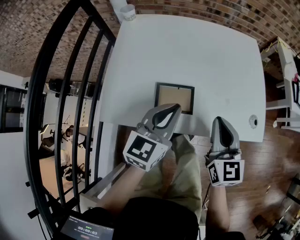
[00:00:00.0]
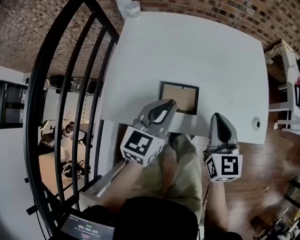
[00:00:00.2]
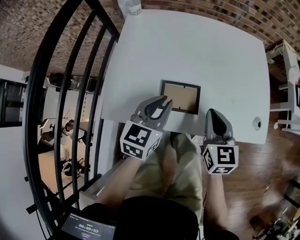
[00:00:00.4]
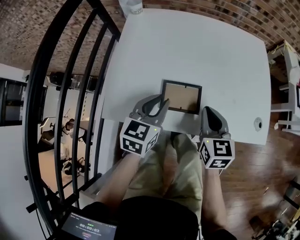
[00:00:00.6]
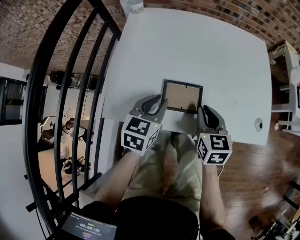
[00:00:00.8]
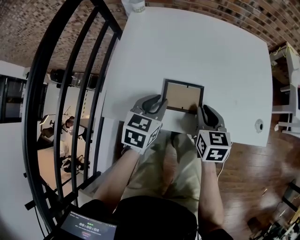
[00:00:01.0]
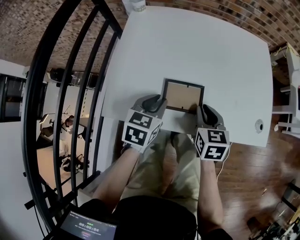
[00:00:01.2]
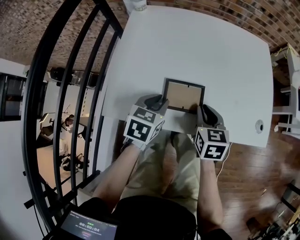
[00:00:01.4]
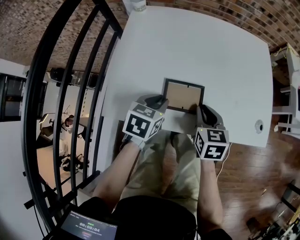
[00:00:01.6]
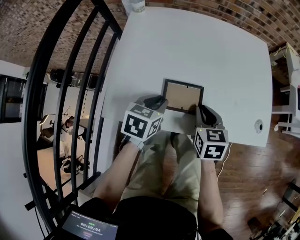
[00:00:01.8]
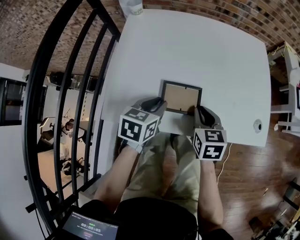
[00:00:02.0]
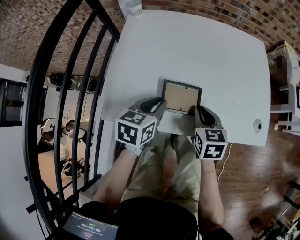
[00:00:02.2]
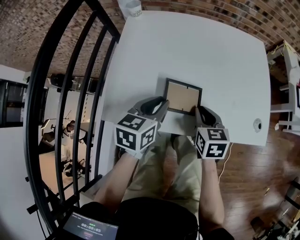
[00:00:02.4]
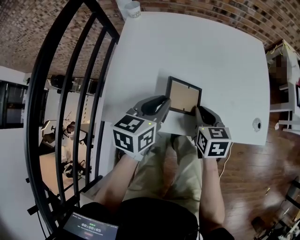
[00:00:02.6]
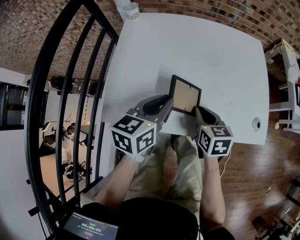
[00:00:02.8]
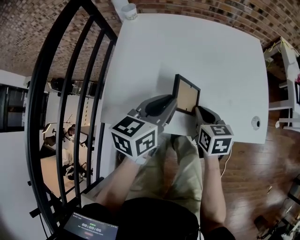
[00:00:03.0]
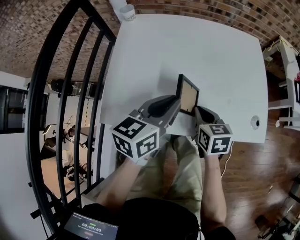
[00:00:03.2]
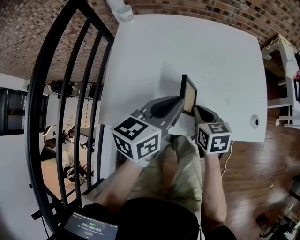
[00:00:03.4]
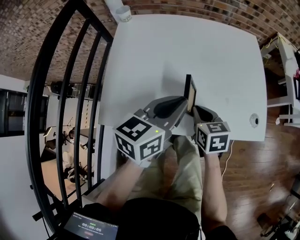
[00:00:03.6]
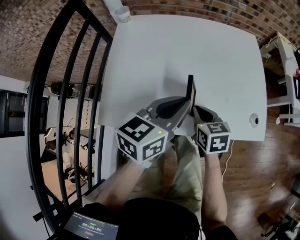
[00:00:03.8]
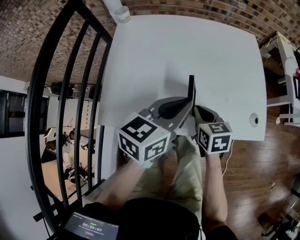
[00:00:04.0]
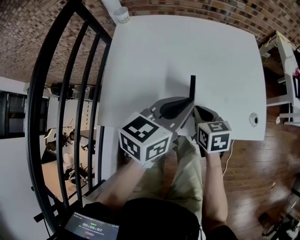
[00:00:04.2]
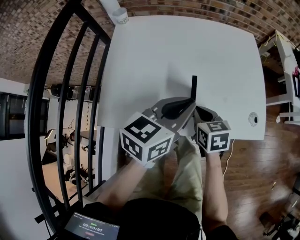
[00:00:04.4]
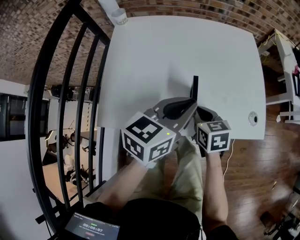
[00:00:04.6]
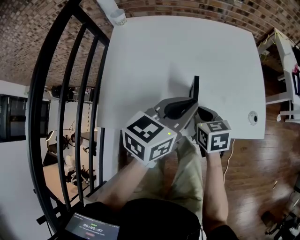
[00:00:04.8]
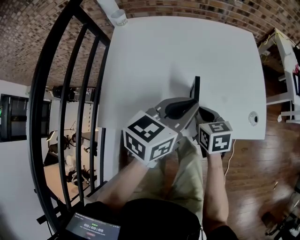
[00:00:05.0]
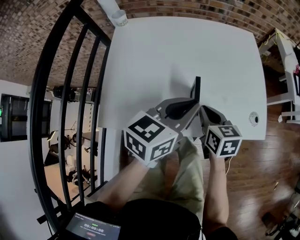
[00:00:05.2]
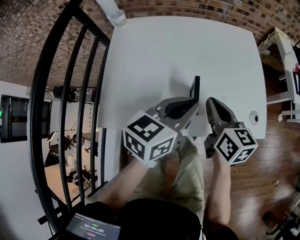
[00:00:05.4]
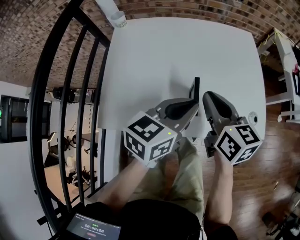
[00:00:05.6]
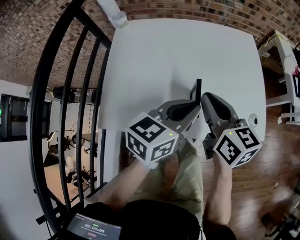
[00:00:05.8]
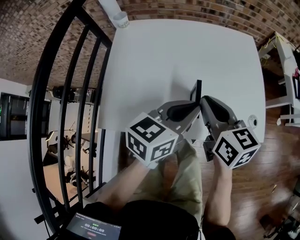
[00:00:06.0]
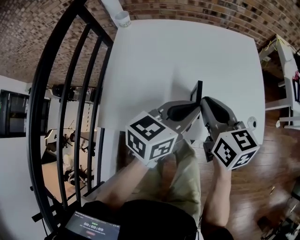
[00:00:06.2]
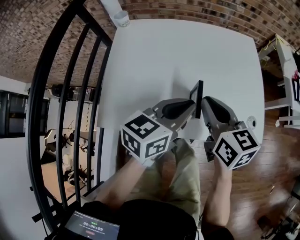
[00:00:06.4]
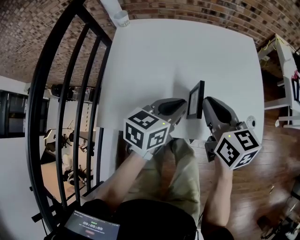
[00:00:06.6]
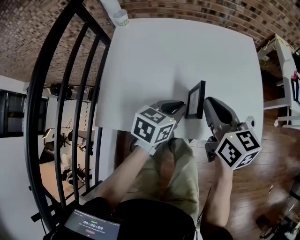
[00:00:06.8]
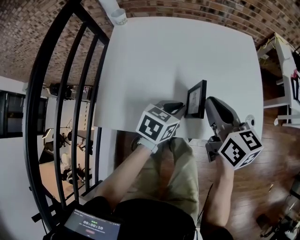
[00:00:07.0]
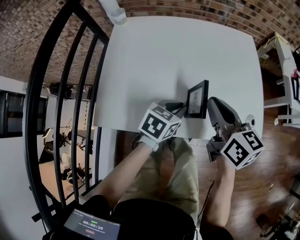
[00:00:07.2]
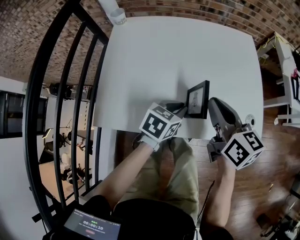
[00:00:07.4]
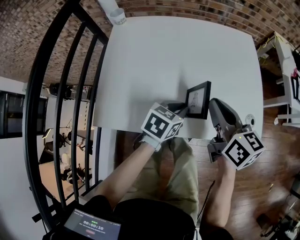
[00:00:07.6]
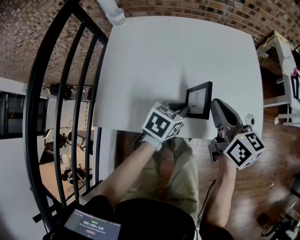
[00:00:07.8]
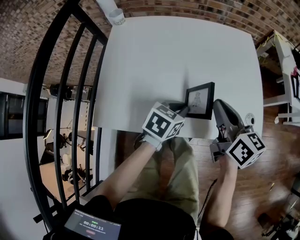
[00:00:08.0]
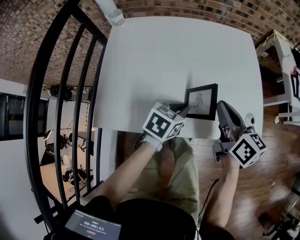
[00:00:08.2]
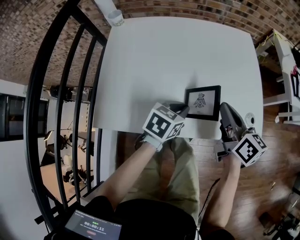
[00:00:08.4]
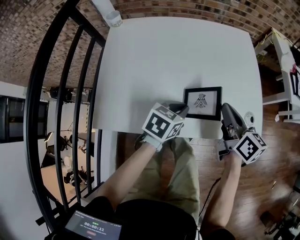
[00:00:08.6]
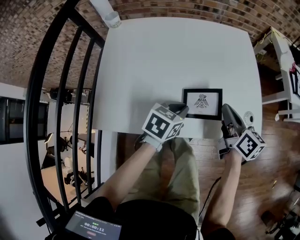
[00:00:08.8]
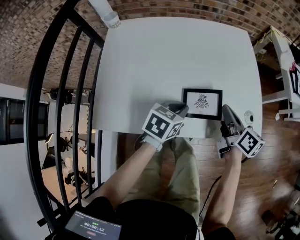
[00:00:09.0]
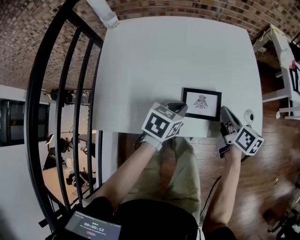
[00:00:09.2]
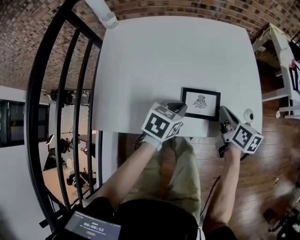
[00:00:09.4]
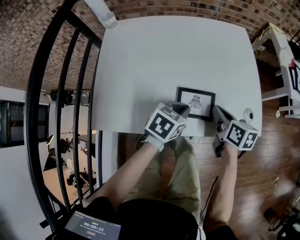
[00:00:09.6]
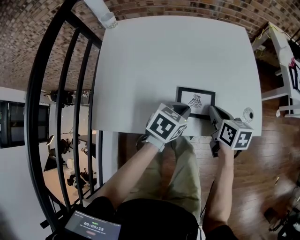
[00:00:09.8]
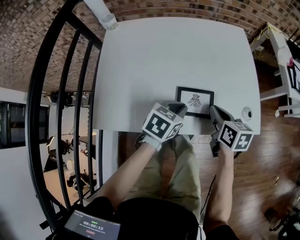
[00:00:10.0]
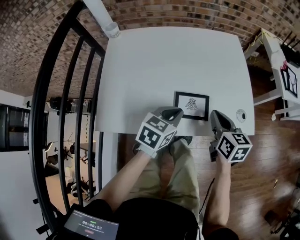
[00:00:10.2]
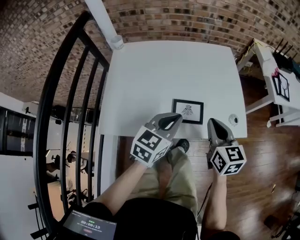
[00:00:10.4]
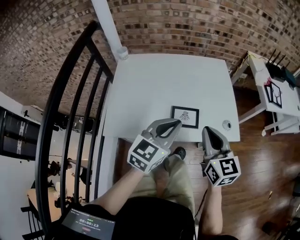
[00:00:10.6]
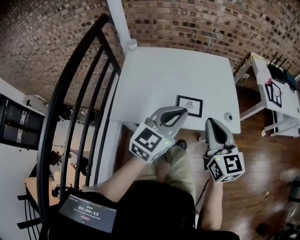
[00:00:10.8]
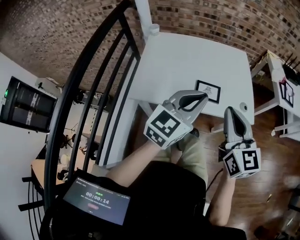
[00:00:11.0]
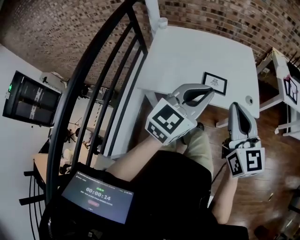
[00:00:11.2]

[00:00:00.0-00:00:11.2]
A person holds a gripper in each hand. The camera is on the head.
00:00:00.0 to 00:00:01.6: Both grippers travel together downward and to the left, roughly 15 cm. The left gripper points its fingers roughly 30 degrees further downward. The right gripper turns by approximately 30 degrees.
00:00:01.6 to 00:00:03.2: The left gripper is displaced upward and to the right by some 15 cm, and turns by approximately 30 degrees.
00:00:03.2 to 00:00:04.8: The left gripper heads to the right, covering some 10 cm.
00:00:04.8 to 00:00:06.4: The right gripper is displaced upward by some 15 cm, and changes its angle by approximately 20 degrees.
00:00:06.4 to 00:00:08.0: The right gripper heads to the right, covering about 5 cm. The left gripper moves downward, approximately 15 cm, and swivels roughly 30 degrees.
00:00:08.0 to 00:00:09.6: The right gripper heads downward and to the right, covering about 15 cm, and rotates approximately 20 degrees.
00:00:09.6 to 00:00:11.2: Both grippers travel together upward and backward, approximately 40 cm. The right gripper points its fingers about 30 degrees further upward. Meanwhile the left gripper angles its fingers upward, by some 40 degrees.

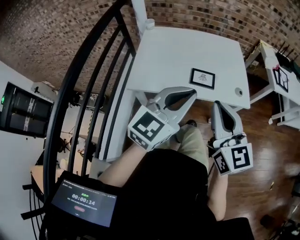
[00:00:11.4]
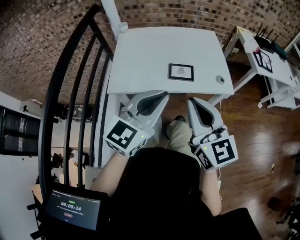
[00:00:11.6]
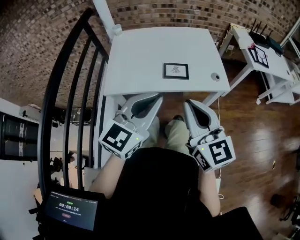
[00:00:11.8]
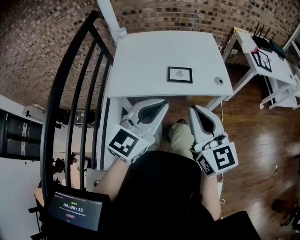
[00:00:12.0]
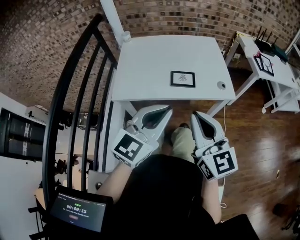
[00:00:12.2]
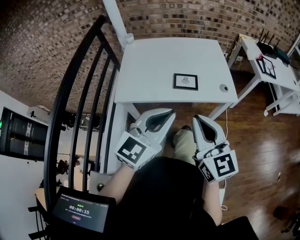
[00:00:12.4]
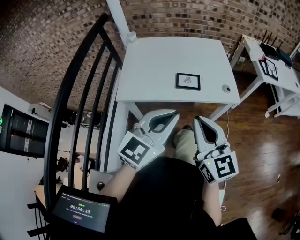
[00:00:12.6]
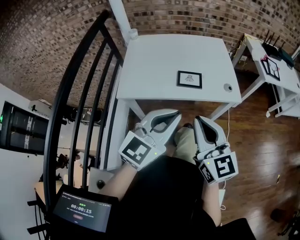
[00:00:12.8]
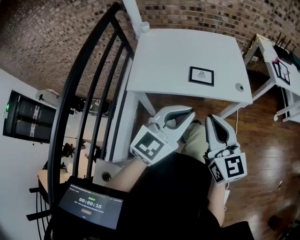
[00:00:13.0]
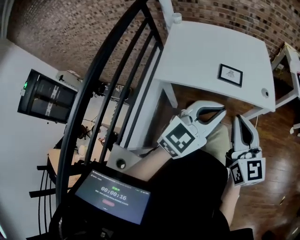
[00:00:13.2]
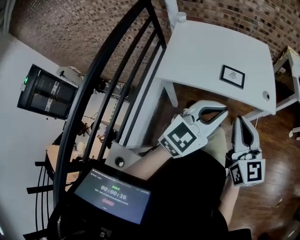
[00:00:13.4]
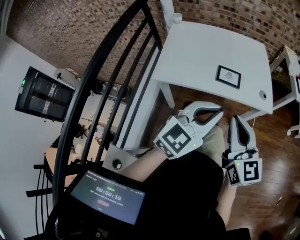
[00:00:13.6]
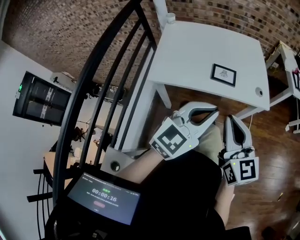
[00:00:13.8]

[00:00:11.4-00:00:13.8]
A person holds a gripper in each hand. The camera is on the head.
00:00:11.4 to 00:00:13.8: There are only small adjustments of the grippers.

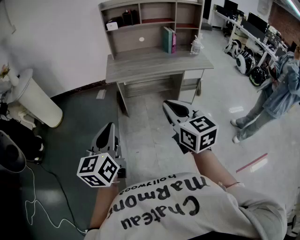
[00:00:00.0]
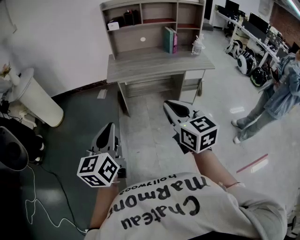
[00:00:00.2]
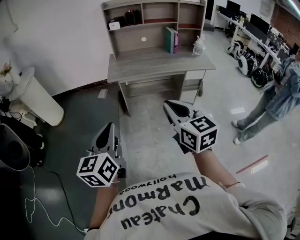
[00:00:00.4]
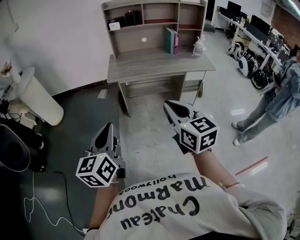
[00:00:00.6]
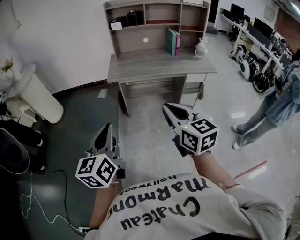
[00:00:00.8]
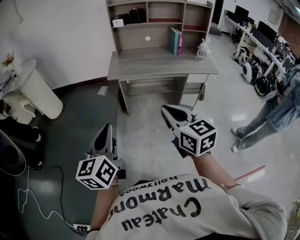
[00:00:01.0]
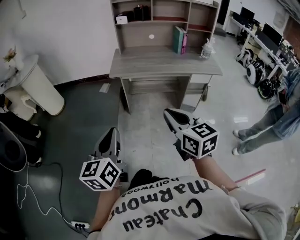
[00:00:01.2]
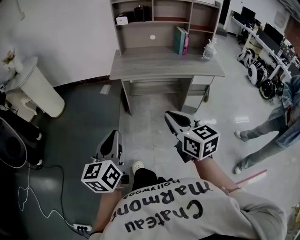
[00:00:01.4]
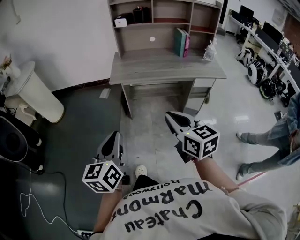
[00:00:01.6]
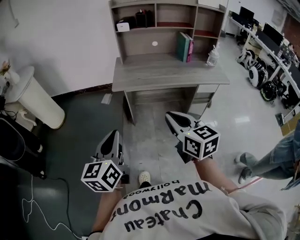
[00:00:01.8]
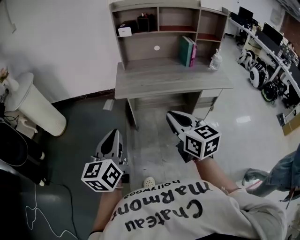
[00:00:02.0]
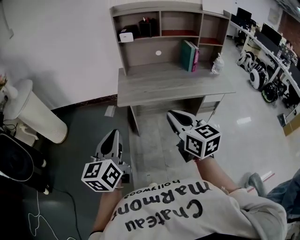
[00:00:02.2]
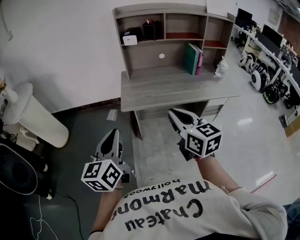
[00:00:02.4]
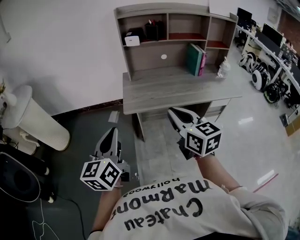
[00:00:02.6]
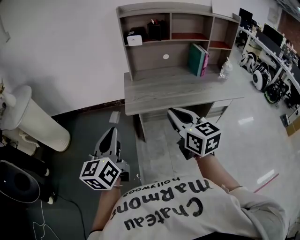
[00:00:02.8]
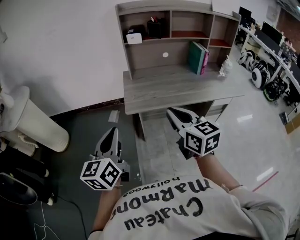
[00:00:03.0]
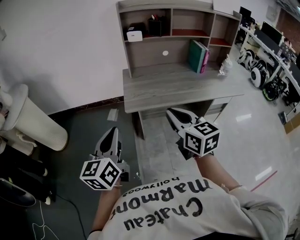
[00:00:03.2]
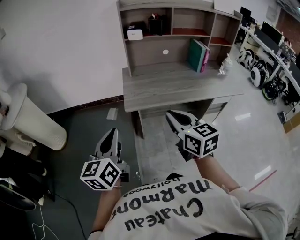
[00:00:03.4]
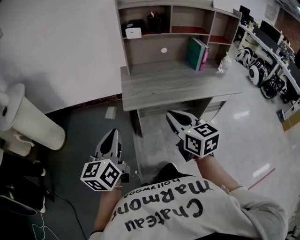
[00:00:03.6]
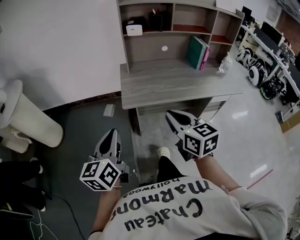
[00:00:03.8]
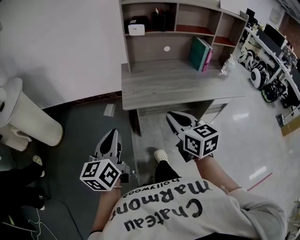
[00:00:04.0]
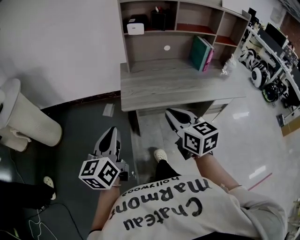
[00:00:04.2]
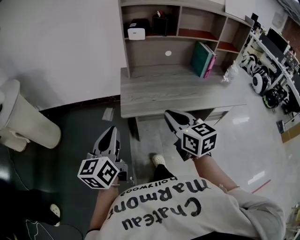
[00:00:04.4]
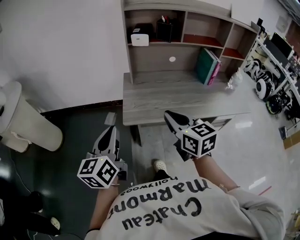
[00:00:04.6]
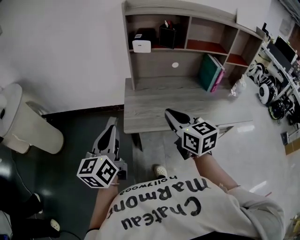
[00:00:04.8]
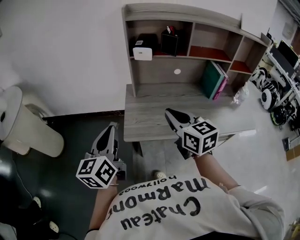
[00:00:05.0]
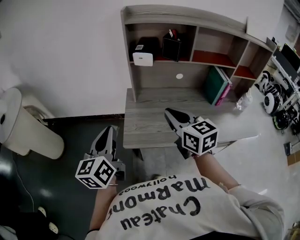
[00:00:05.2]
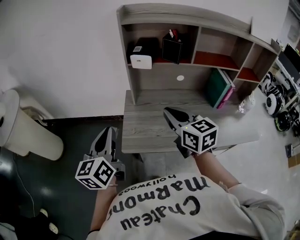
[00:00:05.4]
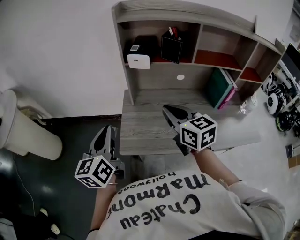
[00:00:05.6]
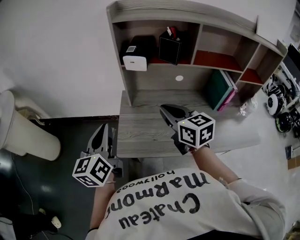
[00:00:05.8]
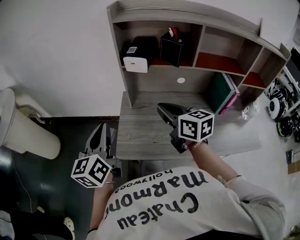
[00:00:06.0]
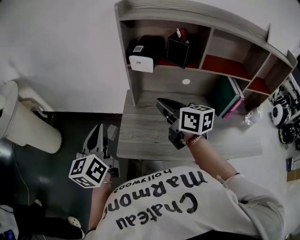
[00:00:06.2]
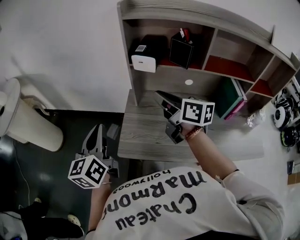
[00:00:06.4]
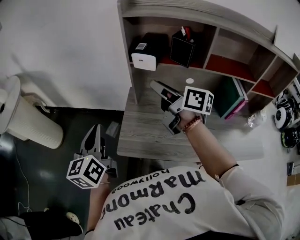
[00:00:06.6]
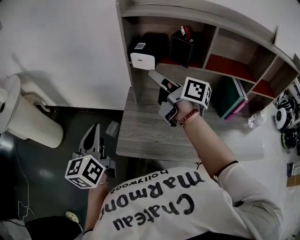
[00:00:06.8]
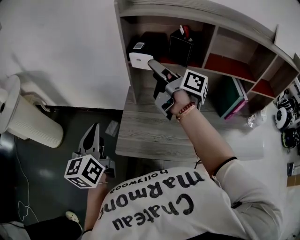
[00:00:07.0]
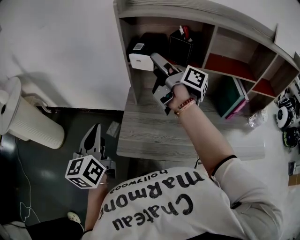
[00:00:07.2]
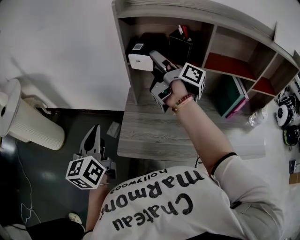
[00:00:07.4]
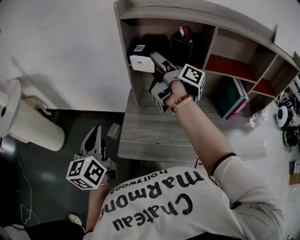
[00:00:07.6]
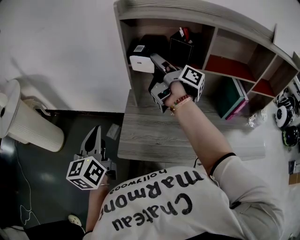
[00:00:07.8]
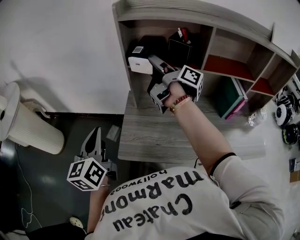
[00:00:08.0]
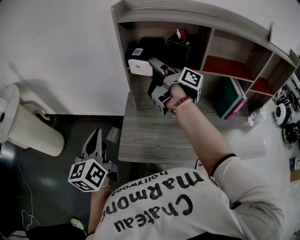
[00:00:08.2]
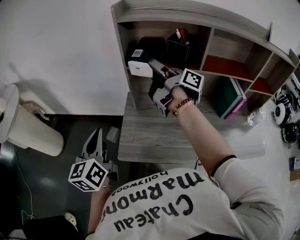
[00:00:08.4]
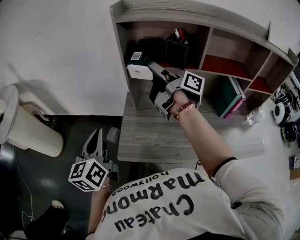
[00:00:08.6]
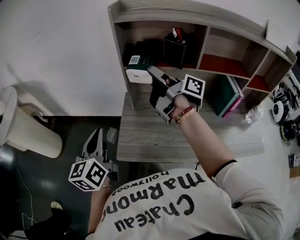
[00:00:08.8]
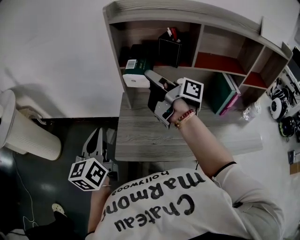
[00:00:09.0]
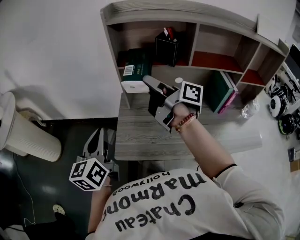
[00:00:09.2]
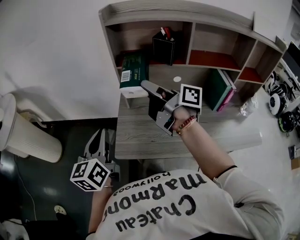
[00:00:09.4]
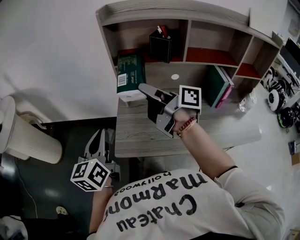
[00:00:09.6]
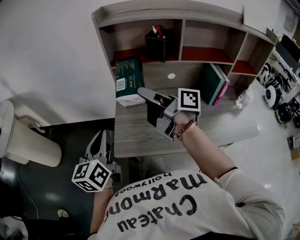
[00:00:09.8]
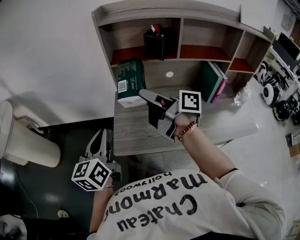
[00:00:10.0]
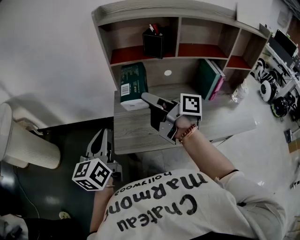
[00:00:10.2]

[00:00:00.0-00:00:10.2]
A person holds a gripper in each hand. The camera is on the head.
00:00:00.0 to 00:00:01.4: The two grippers go about 5 cm downward.
00:00:01.4 to 00:00:03.0: Both grippers travel together forward, approximately 30 cm.
00:00:03.0 to 00:00:04.4: The grippers both shift forward by some 5 cm.
00:00:04.4 to 00:00:05.8: Both grippers move forward, some 25 cm.
00:00:05.8 to 00:00:07.2: The right gripper heads forward and upward, covering approximately 20 cm, twists about 60 degrees clockwise, seen from behind, and opens.
00:00:07.2 to 00:00:08.8: The grippers stay close to where they were, moving slightly.
00:00:08.8 to 00:00:10.2: The right gripper goes some 15 cm backward.
